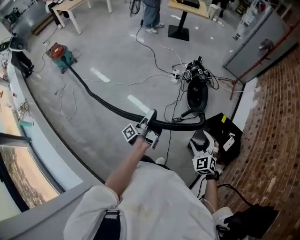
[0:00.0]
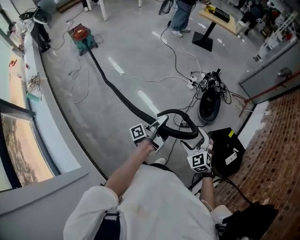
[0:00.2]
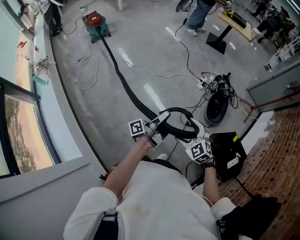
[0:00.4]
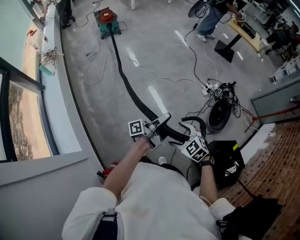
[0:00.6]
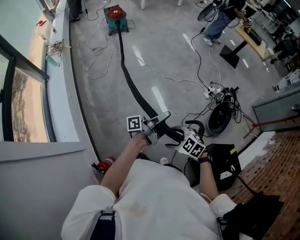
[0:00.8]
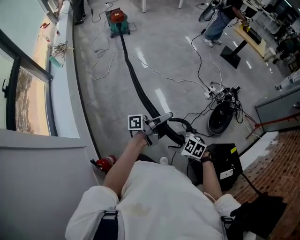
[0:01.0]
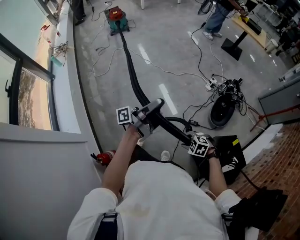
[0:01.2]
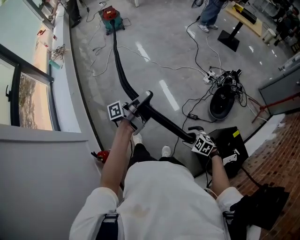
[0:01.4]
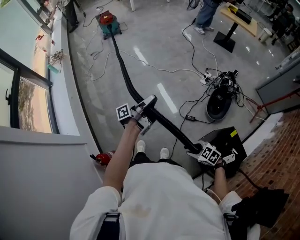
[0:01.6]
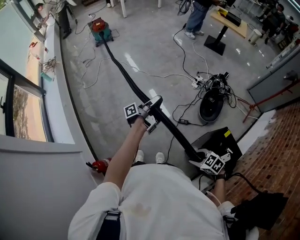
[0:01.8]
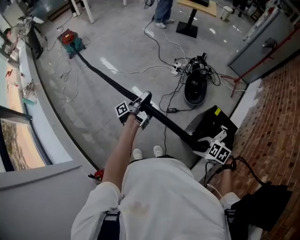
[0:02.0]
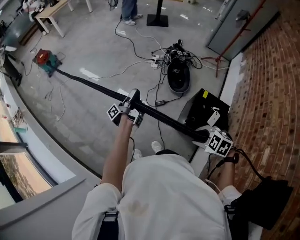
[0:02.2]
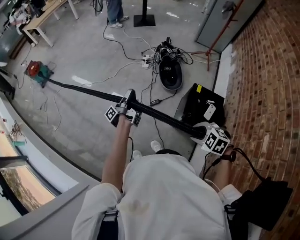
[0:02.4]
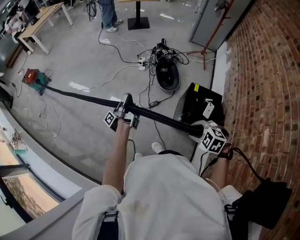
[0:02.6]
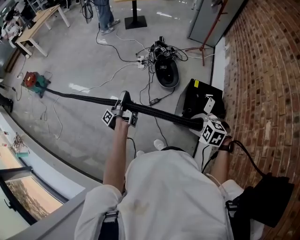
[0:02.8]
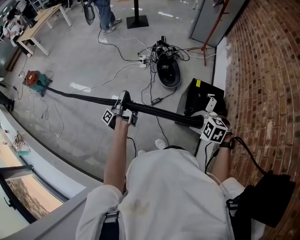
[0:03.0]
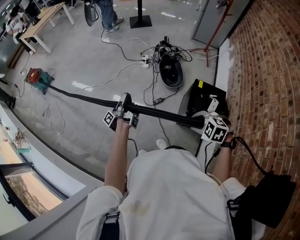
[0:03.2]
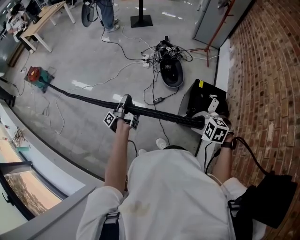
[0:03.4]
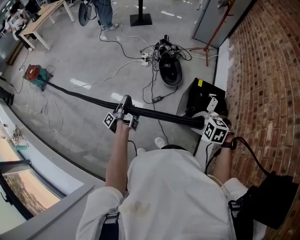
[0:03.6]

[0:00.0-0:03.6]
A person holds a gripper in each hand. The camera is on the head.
0:00.0 to 0:01.8: The right gripper moves about 20 cm, and swivels about 60 degrees.
0:01.8 to 0:03.6: The right gripper shifts some 10 cm upward, and changes its angle by roughly 30 degrees.

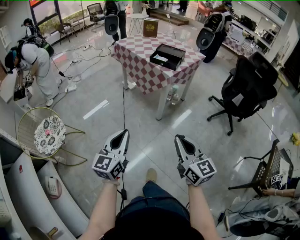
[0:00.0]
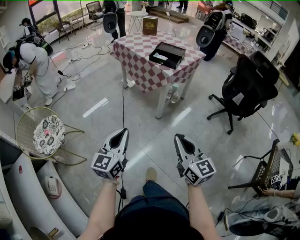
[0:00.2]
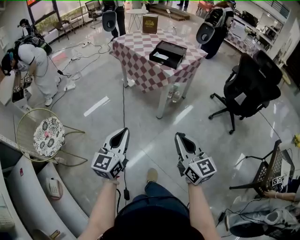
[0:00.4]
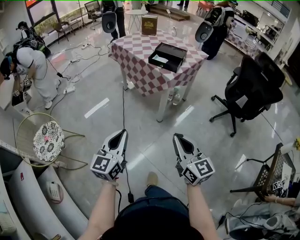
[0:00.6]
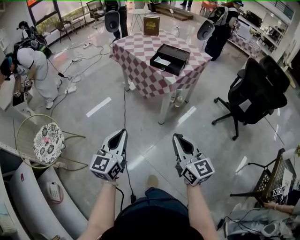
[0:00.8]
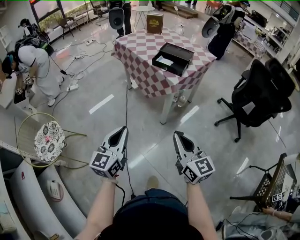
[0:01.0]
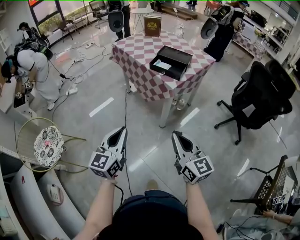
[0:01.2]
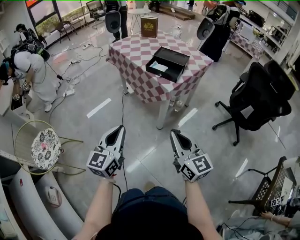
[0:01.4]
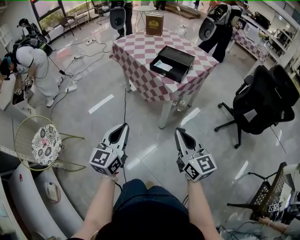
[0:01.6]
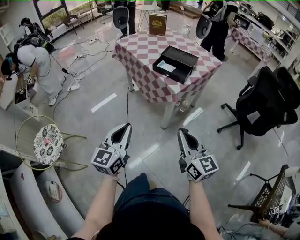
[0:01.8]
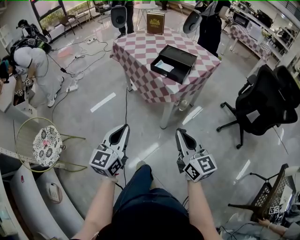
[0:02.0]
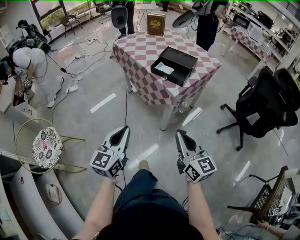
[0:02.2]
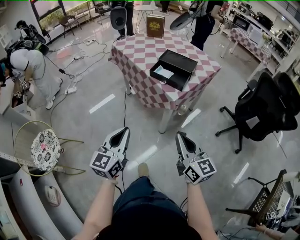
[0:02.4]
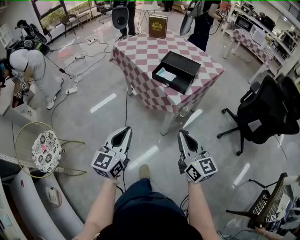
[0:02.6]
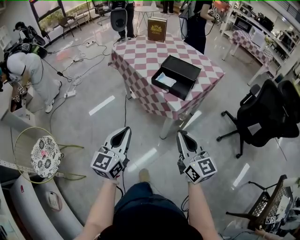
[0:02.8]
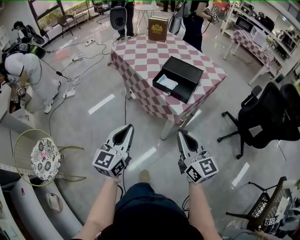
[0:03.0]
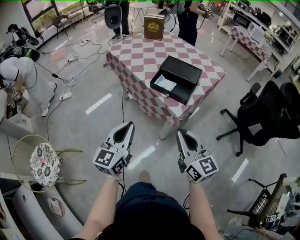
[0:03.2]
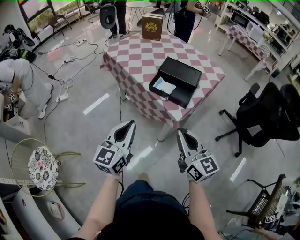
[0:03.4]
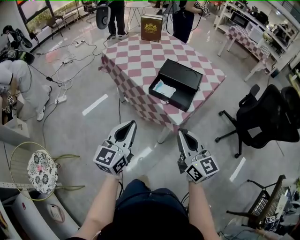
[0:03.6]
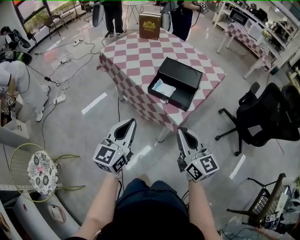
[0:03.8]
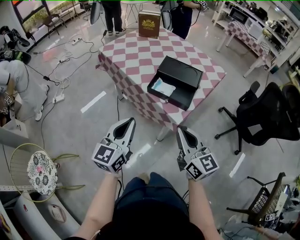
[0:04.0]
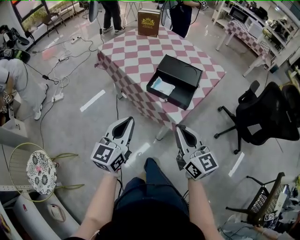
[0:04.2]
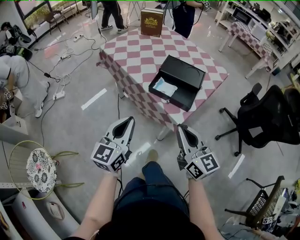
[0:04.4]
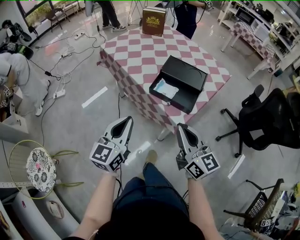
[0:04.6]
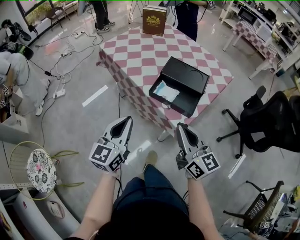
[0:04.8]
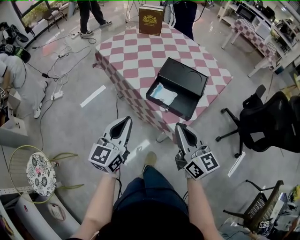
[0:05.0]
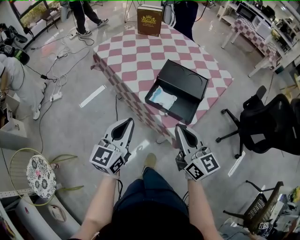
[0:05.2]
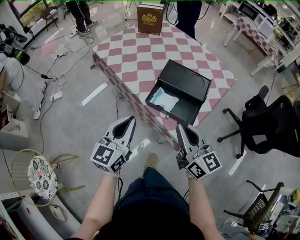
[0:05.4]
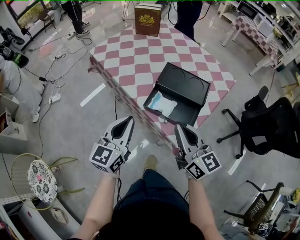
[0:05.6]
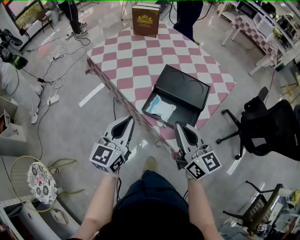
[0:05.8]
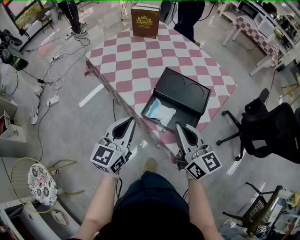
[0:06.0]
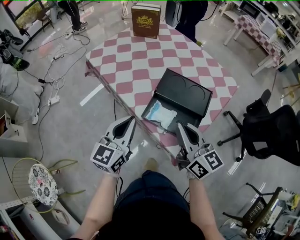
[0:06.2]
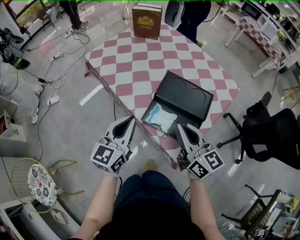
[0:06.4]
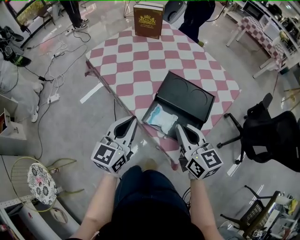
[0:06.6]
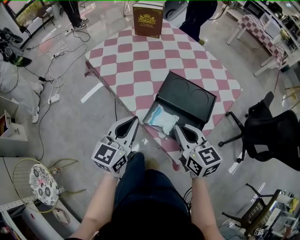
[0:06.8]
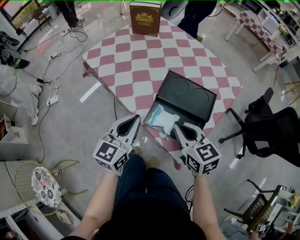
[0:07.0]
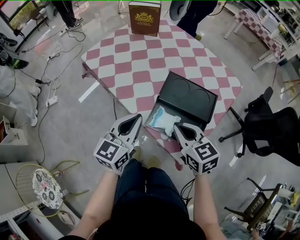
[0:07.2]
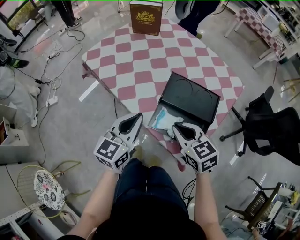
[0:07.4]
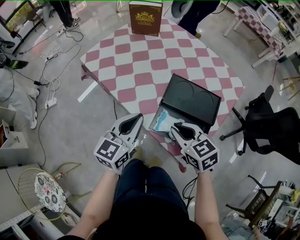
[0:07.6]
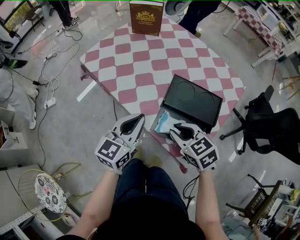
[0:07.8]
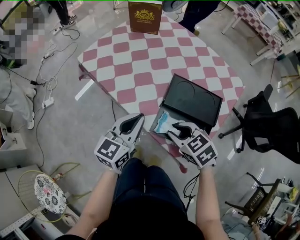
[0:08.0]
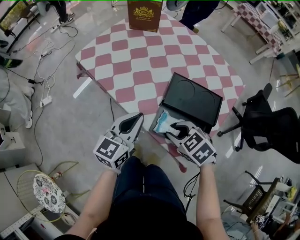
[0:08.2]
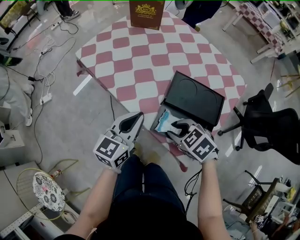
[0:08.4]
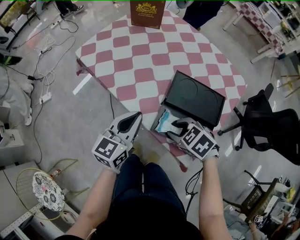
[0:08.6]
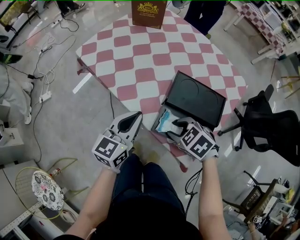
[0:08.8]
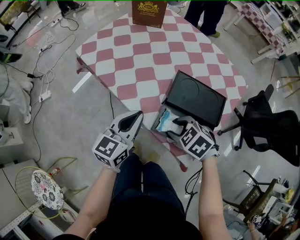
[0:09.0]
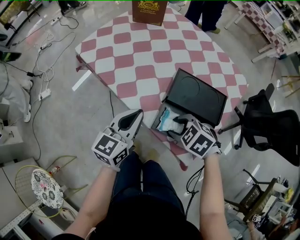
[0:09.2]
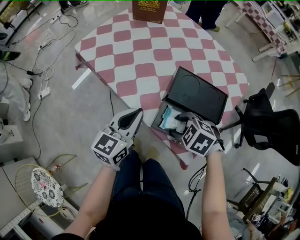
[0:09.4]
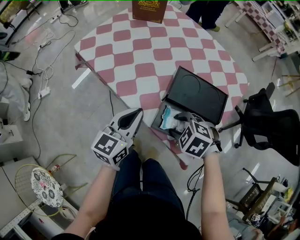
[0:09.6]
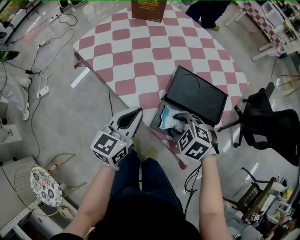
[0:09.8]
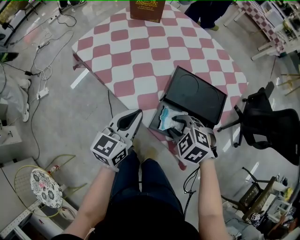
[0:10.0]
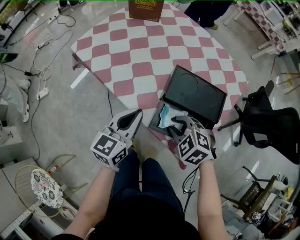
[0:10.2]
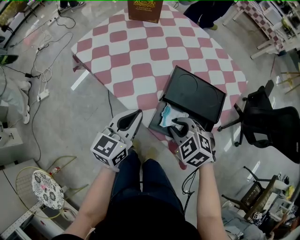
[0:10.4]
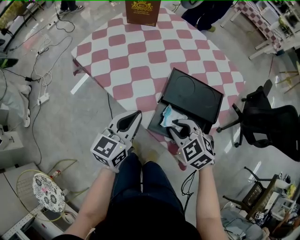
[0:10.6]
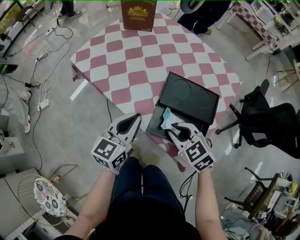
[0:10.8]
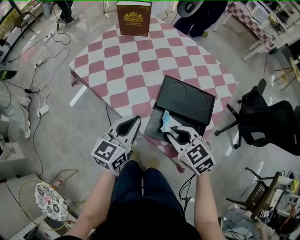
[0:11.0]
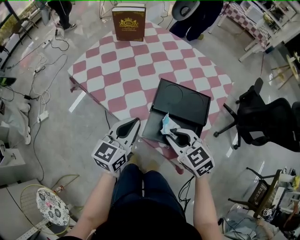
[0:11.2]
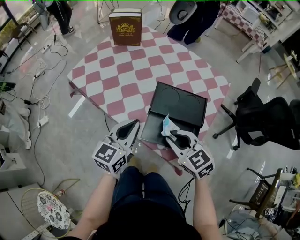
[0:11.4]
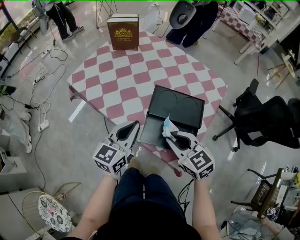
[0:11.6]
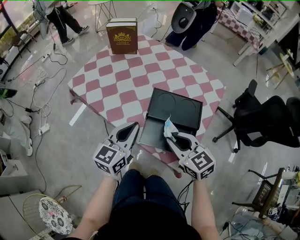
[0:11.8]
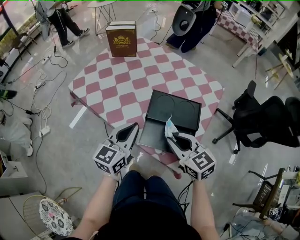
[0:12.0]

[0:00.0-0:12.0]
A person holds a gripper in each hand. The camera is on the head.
0:00.0 to 0:01.6: Both grippers move forward, some 25 cm.
0:01.6 to 0:03.0: The two grippers go about 15 cm forward.
0:03.0 to 0:04.4: Both grippers move forward, some 10 cm.
0:04.4 to 0:06.0: The two grippers go some 20 cm forward.
0:06.0 to 0:07.6: The left gripper heads forward, covering about 10 cm. The right gripper heads downward and forward, covering some 10 cm, and tilts its fingers about 40 degrees downward.
0:07.6 to 0:09.0: The right gripper shifts some 5 cm downward, turns by some 40 degrees, and opens its fingers.
0:09.0 to 0:10.4: The right gripper closes its fingers.
0:10.4 to 0:12.0: The left gripper moves upward, about 5 cm; the right gripper travels upward by some 10 cm, and tilts its fingers roughly 30 degrees upward.

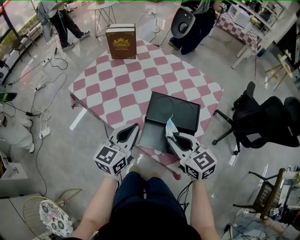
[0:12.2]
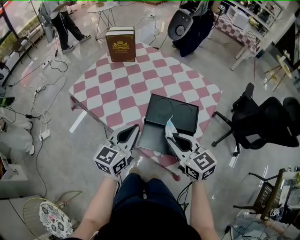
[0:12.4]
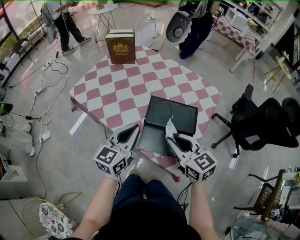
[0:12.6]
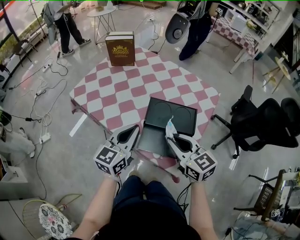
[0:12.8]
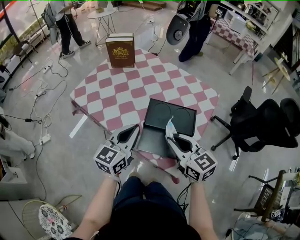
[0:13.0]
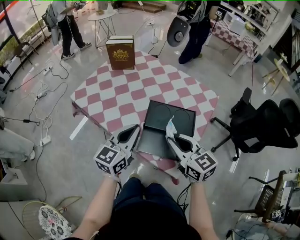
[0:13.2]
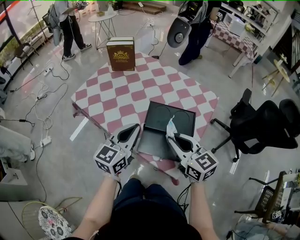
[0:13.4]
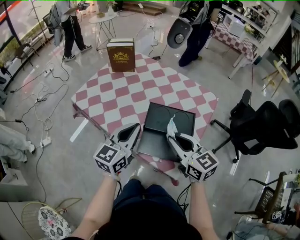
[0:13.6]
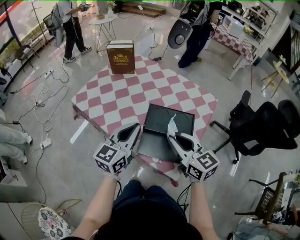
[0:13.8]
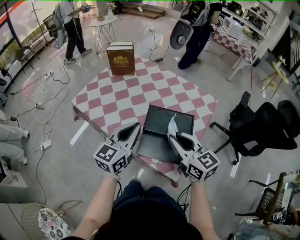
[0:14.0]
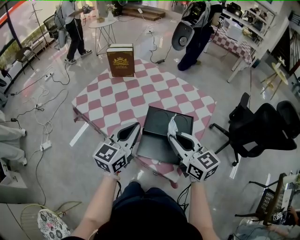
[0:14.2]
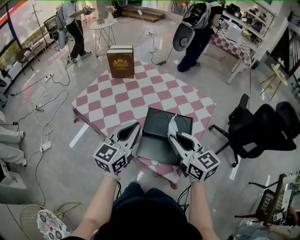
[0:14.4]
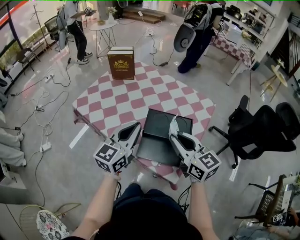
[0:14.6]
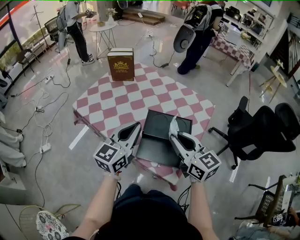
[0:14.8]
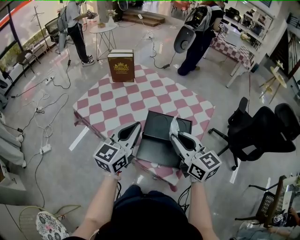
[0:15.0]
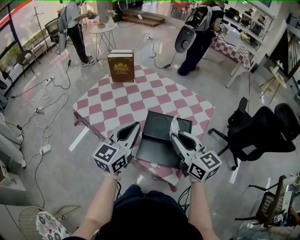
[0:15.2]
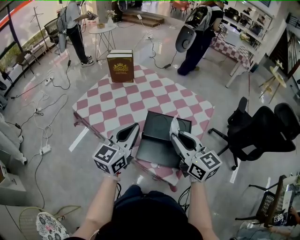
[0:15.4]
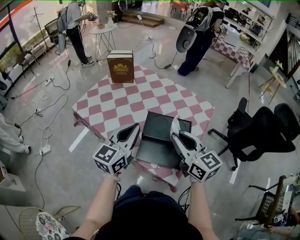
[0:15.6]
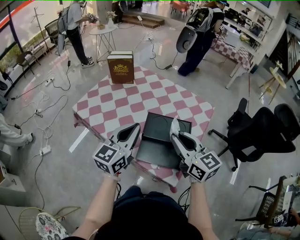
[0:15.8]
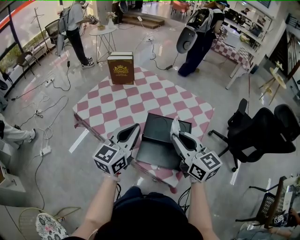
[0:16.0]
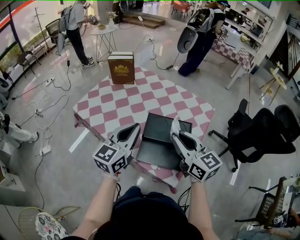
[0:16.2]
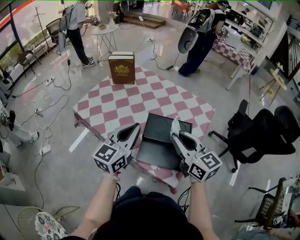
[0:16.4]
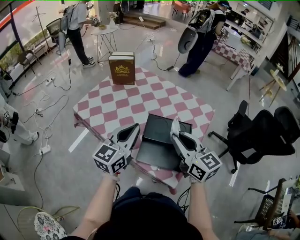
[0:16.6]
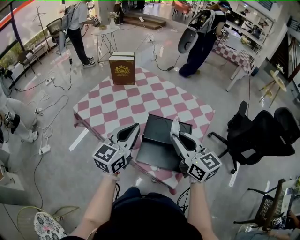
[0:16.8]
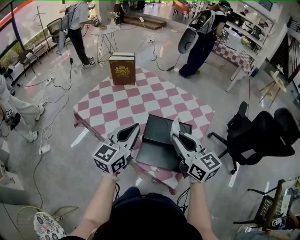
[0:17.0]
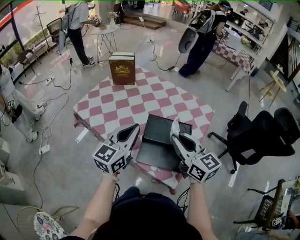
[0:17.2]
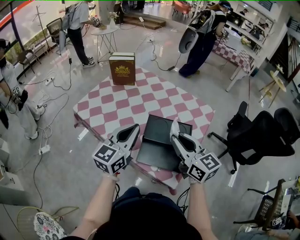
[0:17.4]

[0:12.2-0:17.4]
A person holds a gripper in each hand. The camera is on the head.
0:12.2 to 0:14.0: Both grippers travel together upward, about 5 cm.
0:14.0 to 0:15.6: The grippers stay close to where they were, moving slightly.
0:15.6 to 0:17.4: The two grippers keep their place.

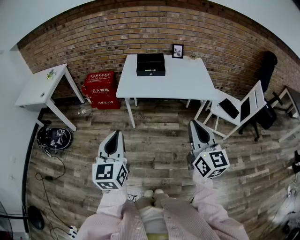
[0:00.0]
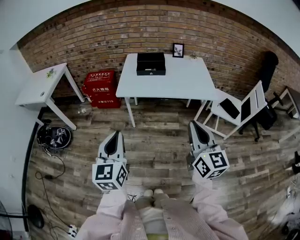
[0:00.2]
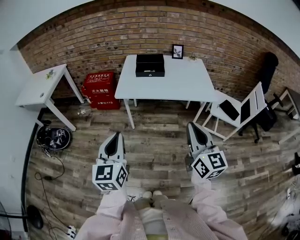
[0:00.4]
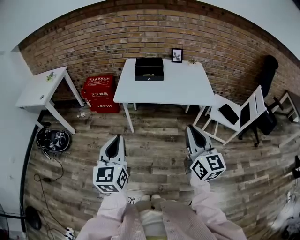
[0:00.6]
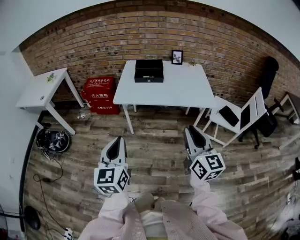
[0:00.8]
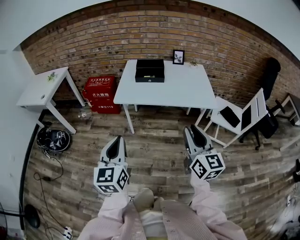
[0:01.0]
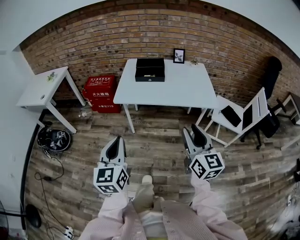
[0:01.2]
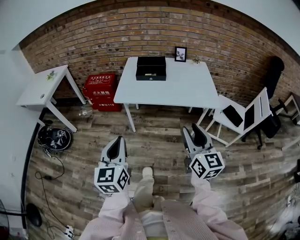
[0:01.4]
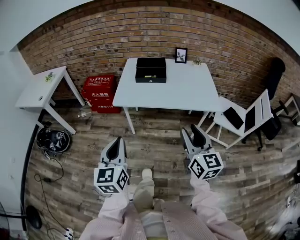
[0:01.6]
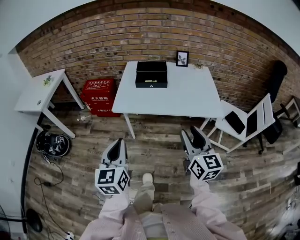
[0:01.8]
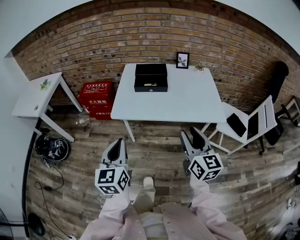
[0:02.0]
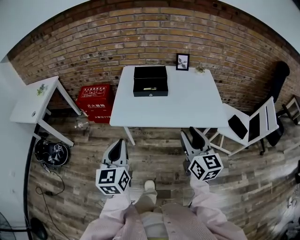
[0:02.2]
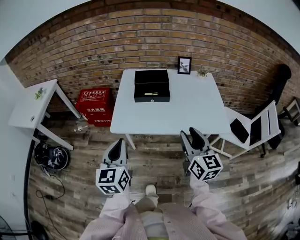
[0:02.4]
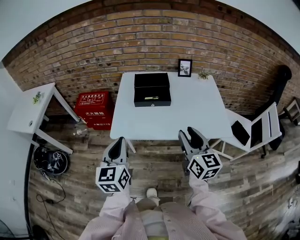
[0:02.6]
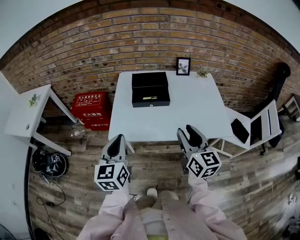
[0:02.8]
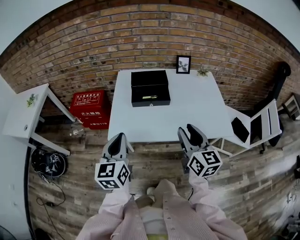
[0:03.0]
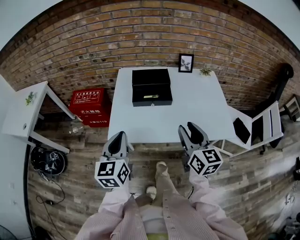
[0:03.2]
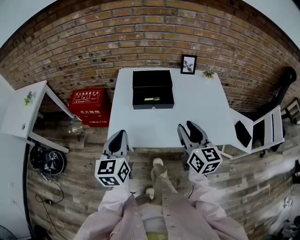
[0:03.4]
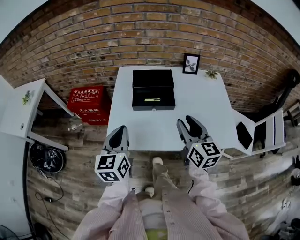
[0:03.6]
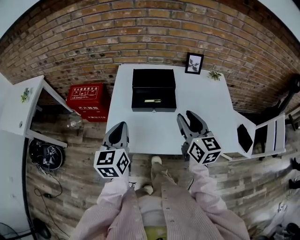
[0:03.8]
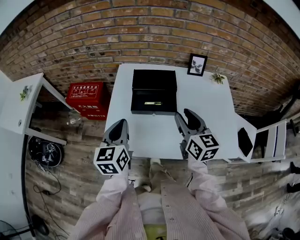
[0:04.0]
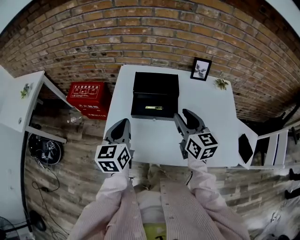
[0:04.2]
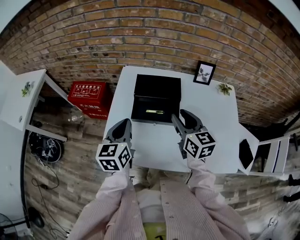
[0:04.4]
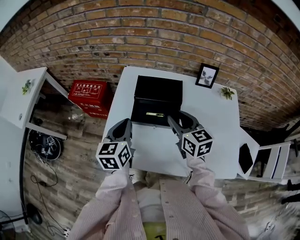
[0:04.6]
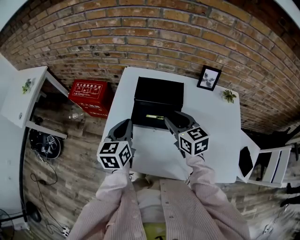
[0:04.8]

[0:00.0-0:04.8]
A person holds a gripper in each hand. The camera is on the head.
0:00.0 to 0:01.6: The right gripper goes roughly 10 cm forward and downward, and opens up. Meanwhile the left gripper heads forward, covering about 5 cm.
0:01.6 to 0:03.2: Both grippers travel together forward, approximately 30 cm.
0:03.2 to 0:04.8: Both grippers move forward, some 25 cm. The right gripper swivels some 30 degrees.
